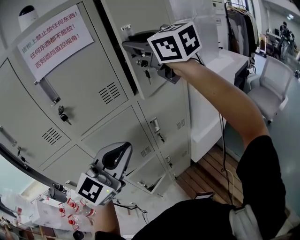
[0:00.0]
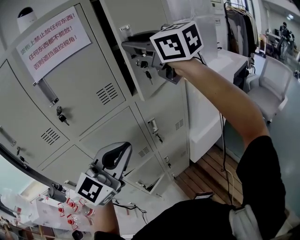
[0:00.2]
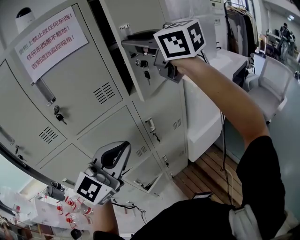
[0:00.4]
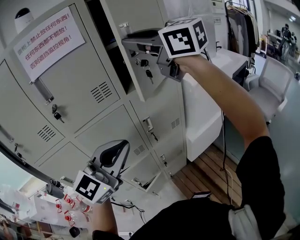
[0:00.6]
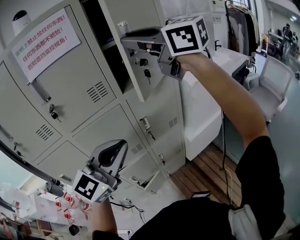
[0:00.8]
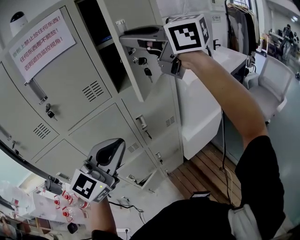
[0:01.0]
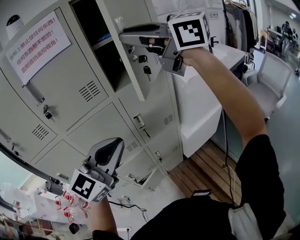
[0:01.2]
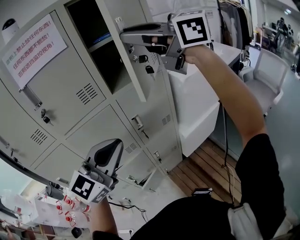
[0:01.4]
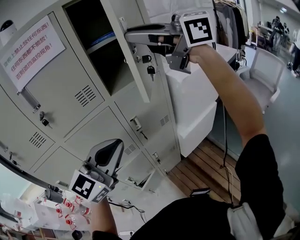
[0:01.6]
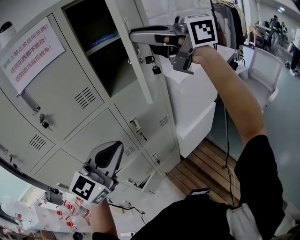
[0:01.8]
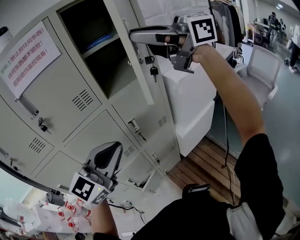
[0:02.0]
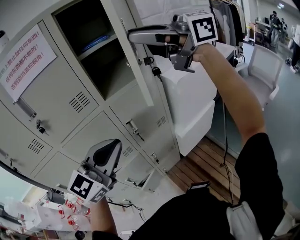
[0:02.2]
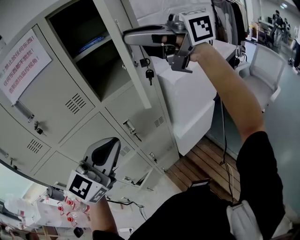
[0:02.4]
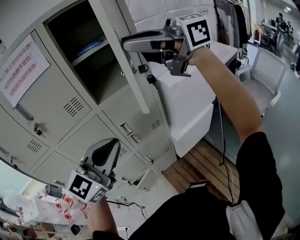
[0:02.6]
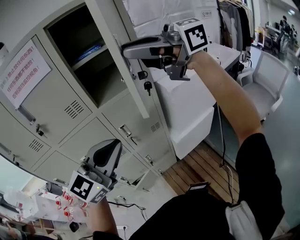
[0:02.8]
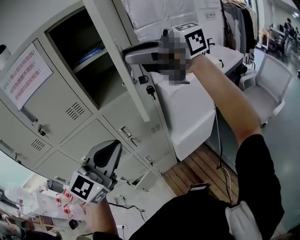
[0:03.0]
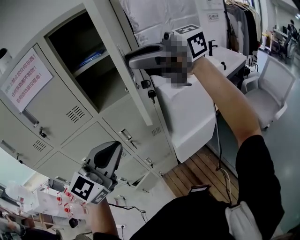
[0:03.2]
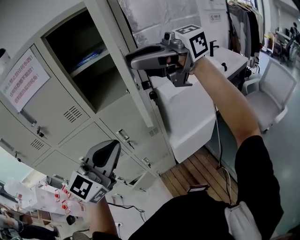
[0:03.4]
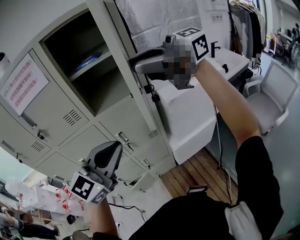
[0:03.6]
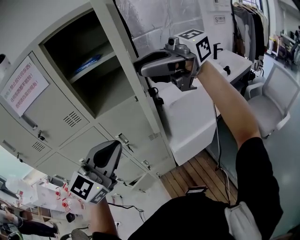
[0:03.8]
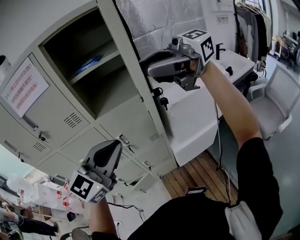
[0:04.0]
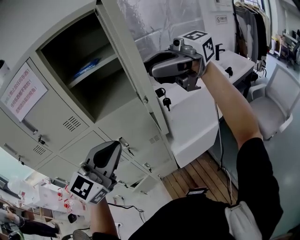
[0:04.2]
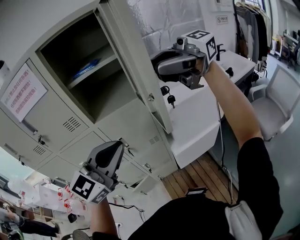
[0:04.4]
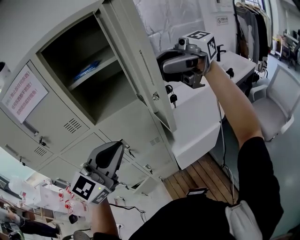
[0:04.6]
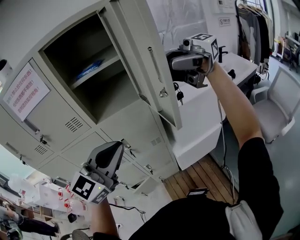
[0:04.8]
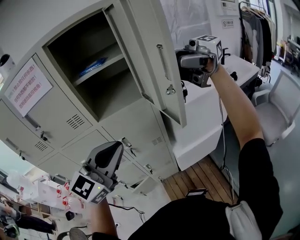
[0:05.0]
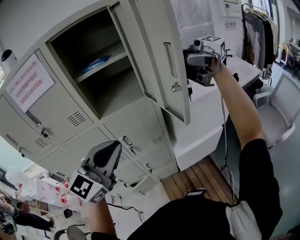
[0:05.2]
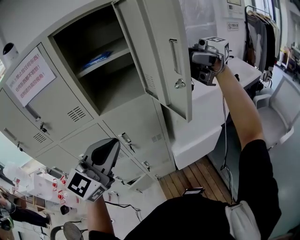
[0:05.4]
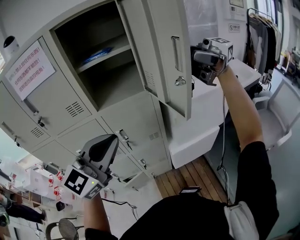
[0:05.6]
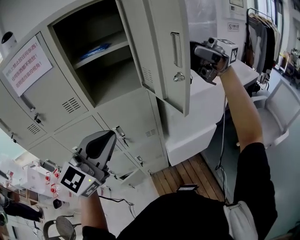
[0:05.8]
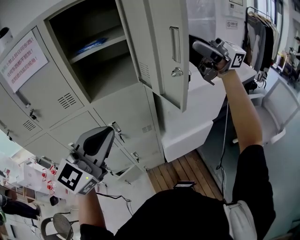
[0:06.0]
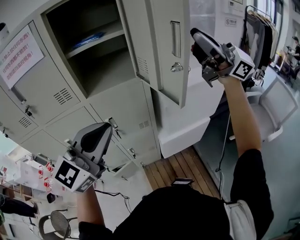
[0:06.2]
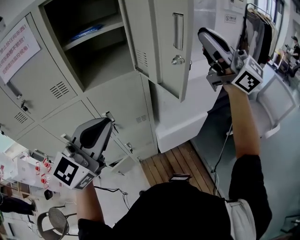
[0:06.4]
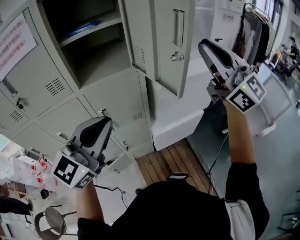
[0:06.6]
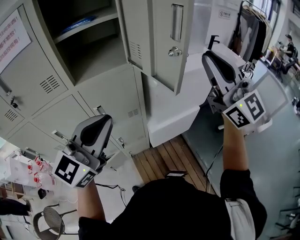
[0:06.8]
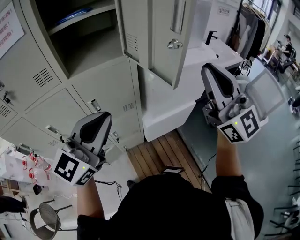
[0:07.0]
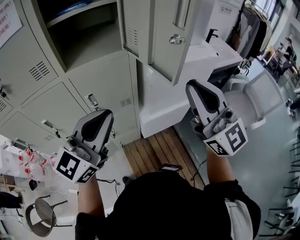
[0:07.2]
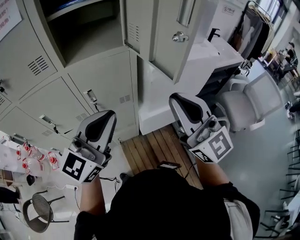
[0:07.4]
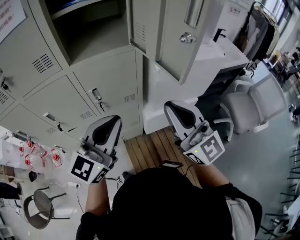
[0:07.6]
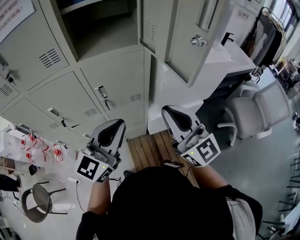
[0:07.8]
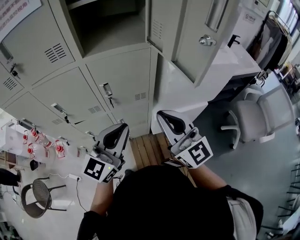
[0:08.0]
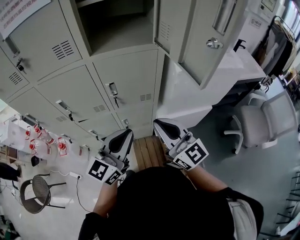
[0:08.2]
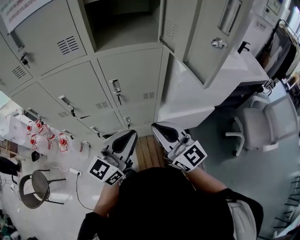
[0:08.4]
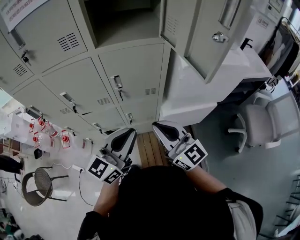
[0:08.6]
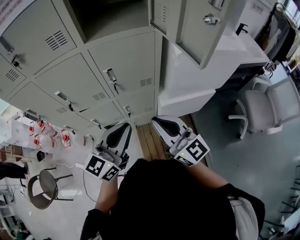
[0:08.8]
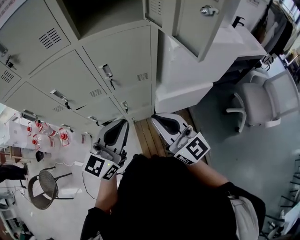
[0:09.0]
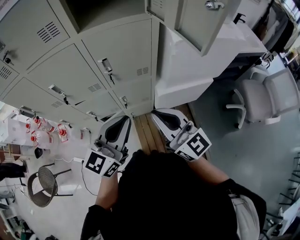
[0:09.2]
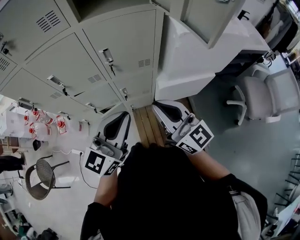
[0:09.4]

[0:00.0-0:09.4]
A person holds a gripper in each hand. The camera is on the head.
0.0 to 1.6 s: The right gripper shifts roughly 10 cm to the right and backward, and changes its angle by roughly 30 degrees. Meanwhile the left gripper travels to the right by about 5 cm.
1.6 to 3.2 s: The left gripper ends up some 15 cm from where it was, while the right gripper ends up some 10 cm from where it was, and rotates roughly 30 degrees.
3.2 to 4.8 s: The left gripper ends up roughly 10 cm from where it was, while the right gripper ends up some 15 cm from where it was, and changes its angle by some 30 degrees.
4.8 to 6.2 s: The right gripper ends up approximately 5 cm from where it was, and swivels some 50 degrees.
6.2 to 7.8 s: The right gripper shifts approximately 30 cm downward and to the left, and rotates some 40 degrees, while the left gripper is displaced downward by about 15 cm.
7.8 to 9.4 s: The left gripper goes about 10 cm downward and backward; the right gripper moves downward and to the left, roughly 15 cm.

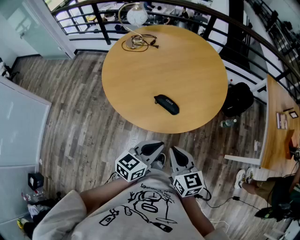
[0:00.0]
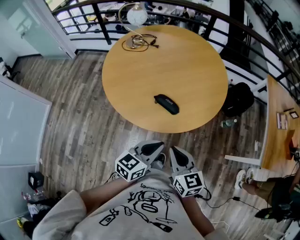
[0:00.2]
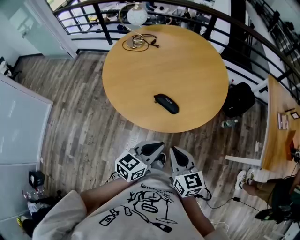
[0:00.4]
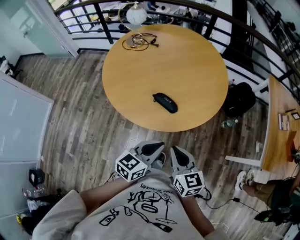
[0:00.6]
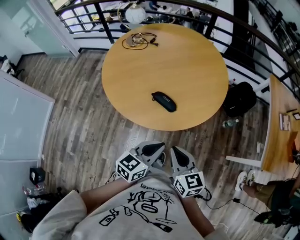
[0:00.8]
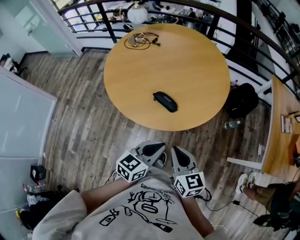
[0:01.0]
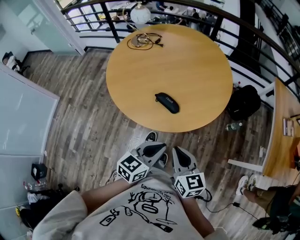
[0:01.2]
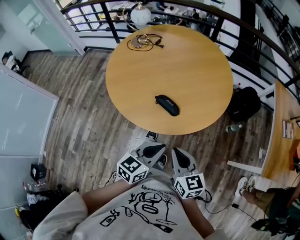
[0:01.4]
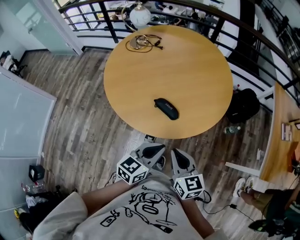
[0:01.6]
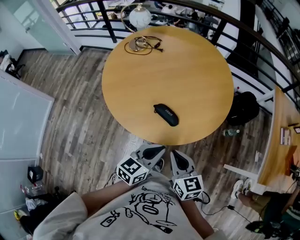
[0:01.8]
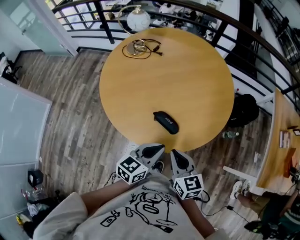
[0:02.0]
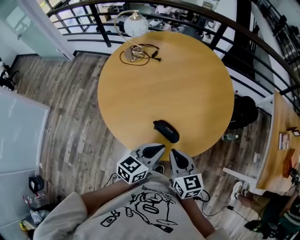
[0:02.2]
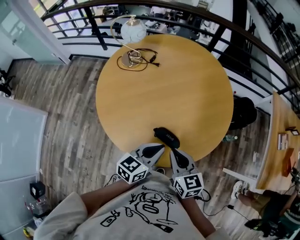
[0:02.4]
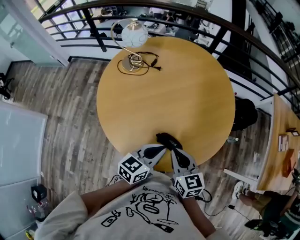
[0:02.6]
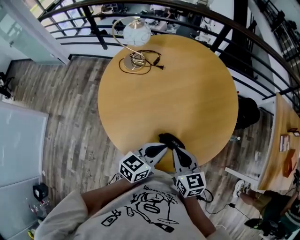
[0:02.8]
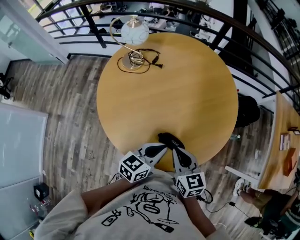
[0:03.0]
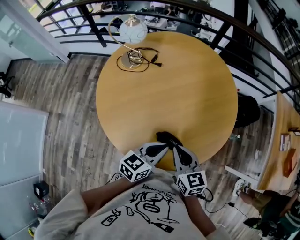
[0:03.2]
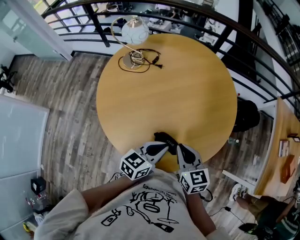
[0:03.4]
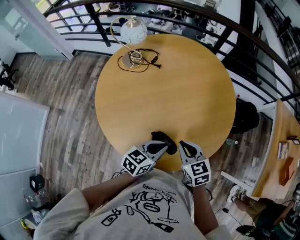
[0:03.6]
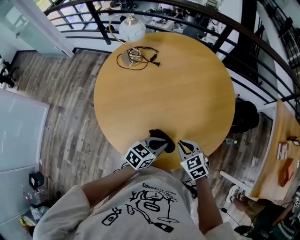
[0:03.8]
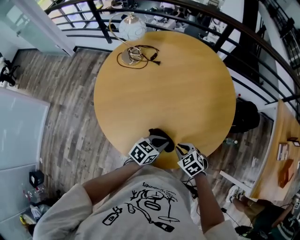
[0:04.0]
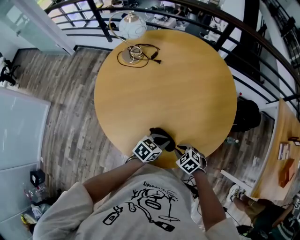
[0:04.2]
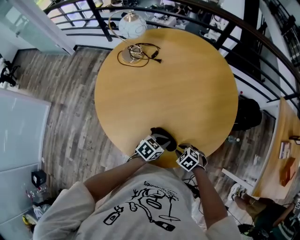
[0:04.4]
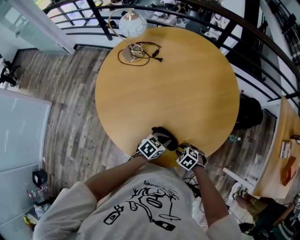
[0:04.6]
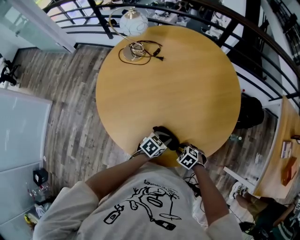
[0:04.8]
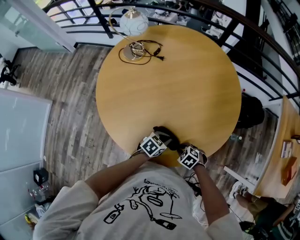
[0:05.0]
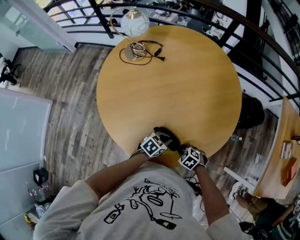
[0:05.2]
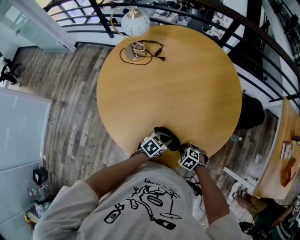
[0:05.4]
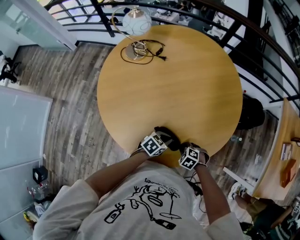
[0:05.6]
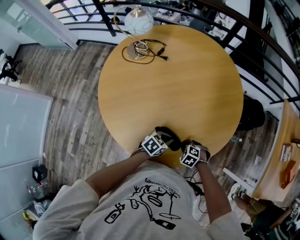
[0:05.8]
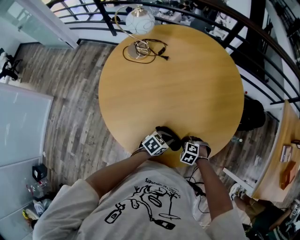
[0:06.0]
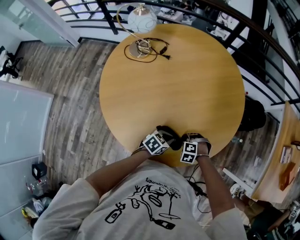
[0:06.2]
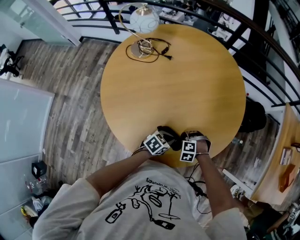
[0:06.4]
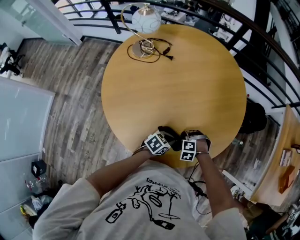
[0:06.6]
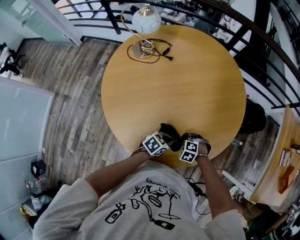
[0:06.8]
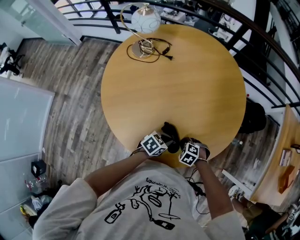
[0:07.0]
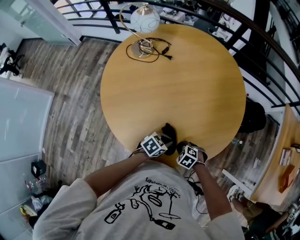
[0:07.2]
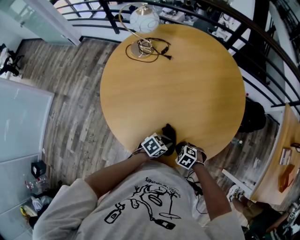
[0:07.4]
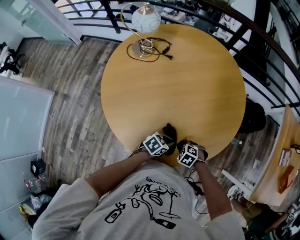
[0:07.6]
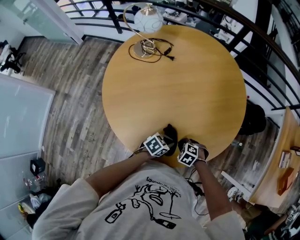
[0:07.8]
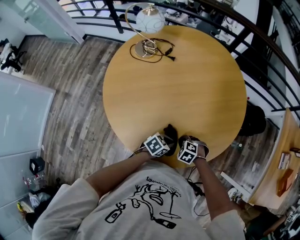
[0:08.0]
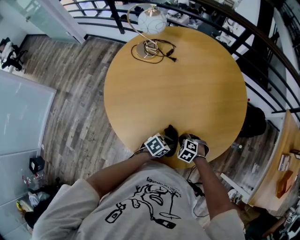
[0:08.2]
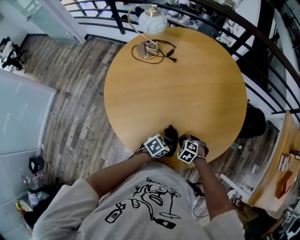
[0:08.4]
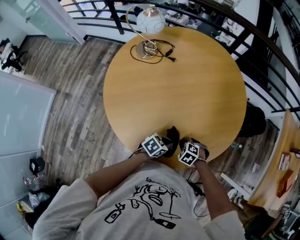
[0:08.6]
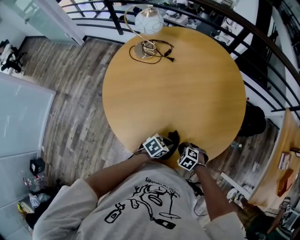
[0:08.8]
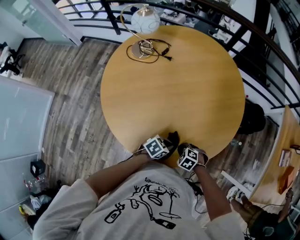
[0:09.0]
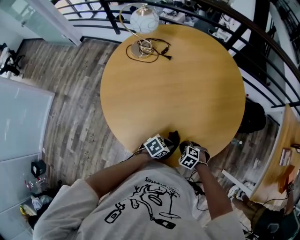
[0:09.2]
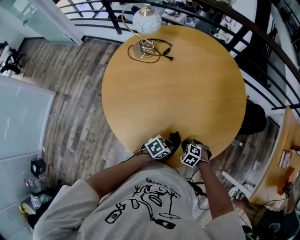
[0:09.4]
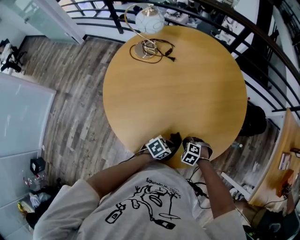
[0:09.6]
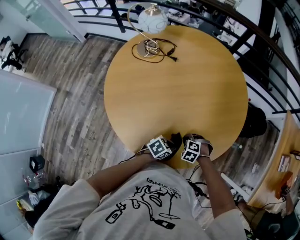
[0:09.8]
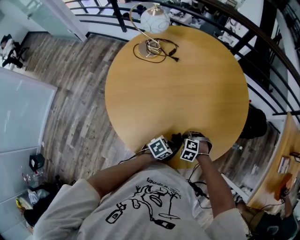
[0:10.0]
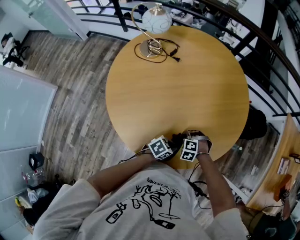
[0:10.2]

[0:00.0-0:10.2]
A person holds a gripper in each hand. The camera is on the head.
0.0 to 1.4 s: The grippers move only a little.
1.4 to 3.0 s: The grippers both shift forward and to the left by about 25 cm.
3.0 to 4.4 s: Both grippers travel together downward, roughly 20 cm. The right gripper tilts its fingers some 40 degrees downward; the left gripper swivels some 30 degrees.
4.4 to 5.8 s: The grippers make only small movements.
7.2 to 8.8 s: The grippers make only small movements.
8.8 to 10.2 s: The right gripper ends up about 10 cm from where it was, and changes its angle by roughly 30 degrees.

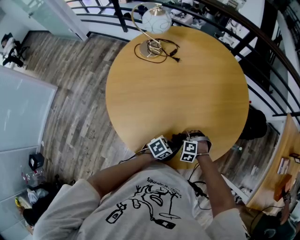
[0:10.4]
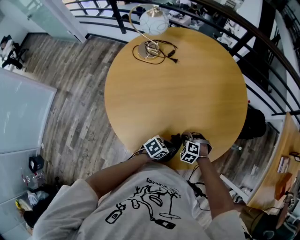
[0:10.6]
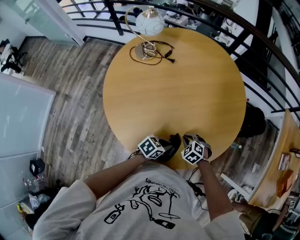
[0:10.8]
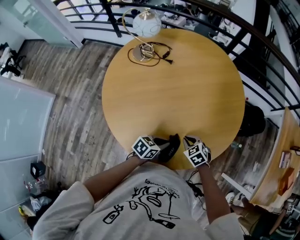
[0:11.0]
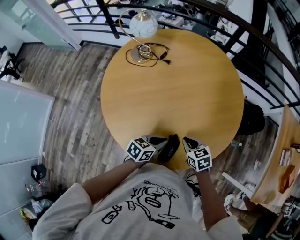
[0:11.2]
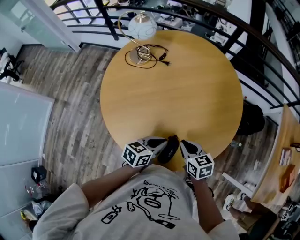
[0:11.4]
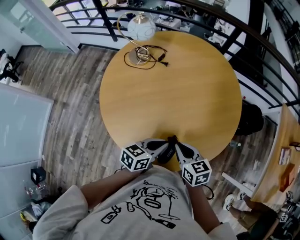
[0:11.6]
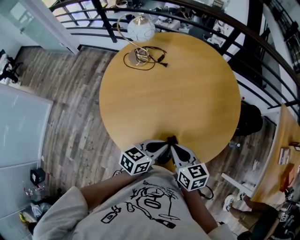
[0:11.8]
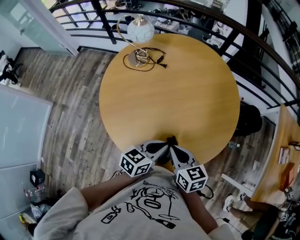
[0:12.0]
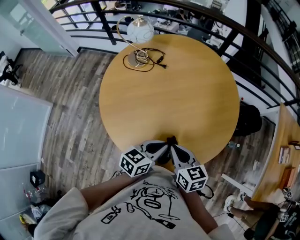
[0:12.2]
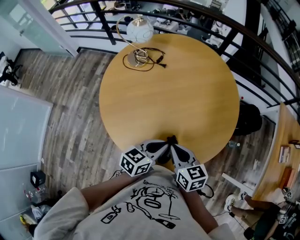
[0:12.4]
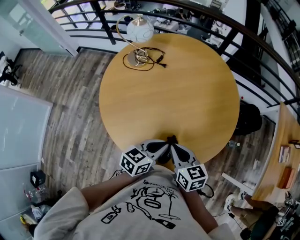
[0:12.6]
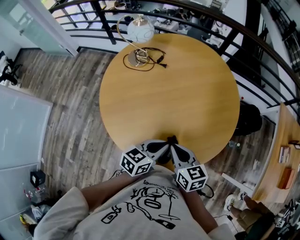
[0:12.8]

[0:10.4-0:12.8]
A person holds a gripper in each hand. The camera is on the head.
10.4 to 11.6 s: Both grippers travel together upward, approximately 20 cm. The left gripper changes its angle by some 30 degrees. The right gripper twists some 80 degrees clockwise, seen from behind.
11.6 to 12.8 s: The grippers stay close to where they were, moving slightly.

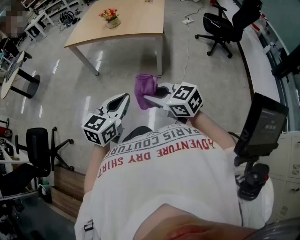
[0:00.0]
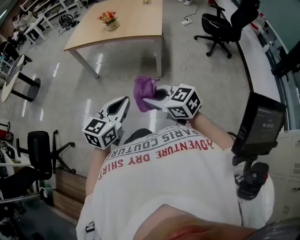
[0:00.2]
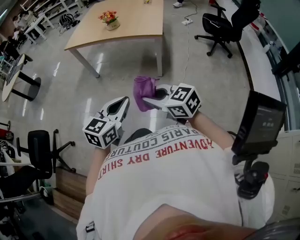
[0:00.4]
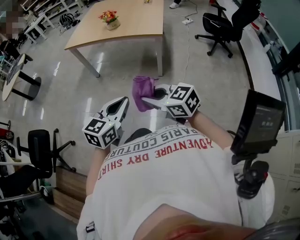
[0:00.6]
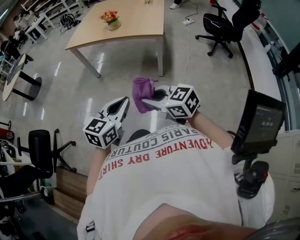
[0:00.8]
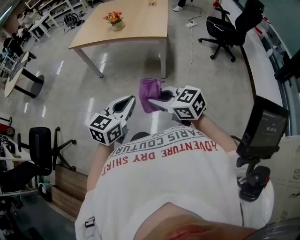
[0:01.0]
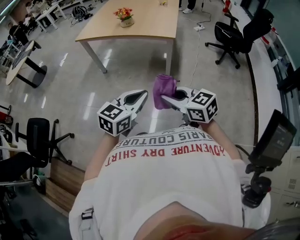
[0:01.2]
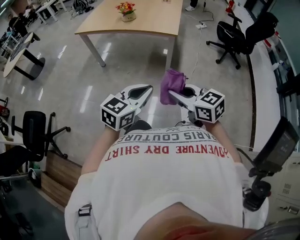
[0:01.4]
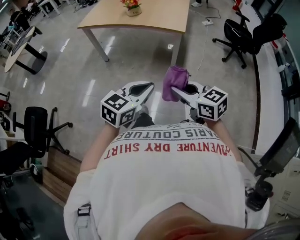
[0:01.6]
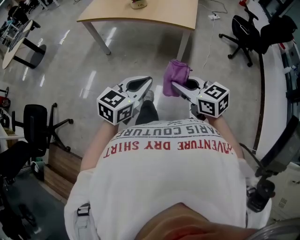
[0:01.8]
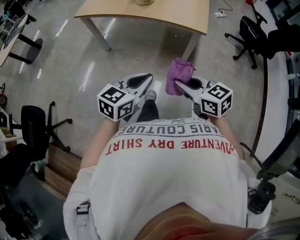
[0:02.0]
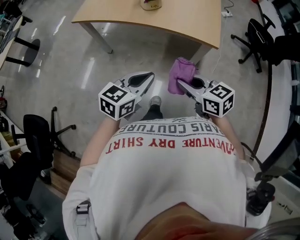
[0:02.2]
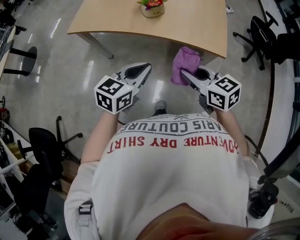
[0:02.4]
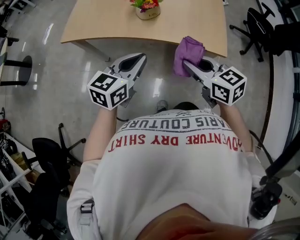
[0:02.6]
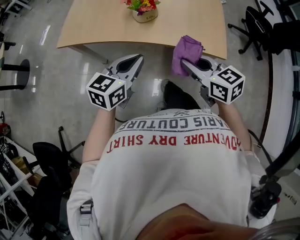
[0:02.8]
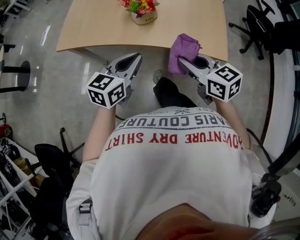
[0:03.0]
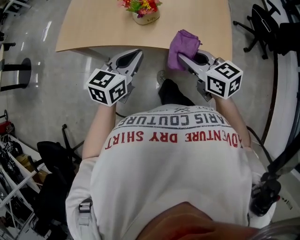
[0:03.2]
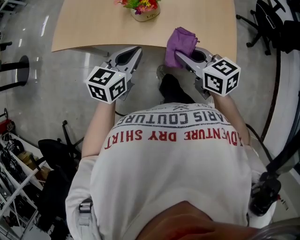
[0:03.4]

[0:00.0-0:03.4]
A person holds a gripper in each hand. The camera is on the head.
0.0 to 1.6 s: The left gripper changes place by some 5 cm, while the right gripper ends up some 5 cm from where it was.
1.6 to 3.4 s: The two grippers travel together, forward, approximately 70 cm.
